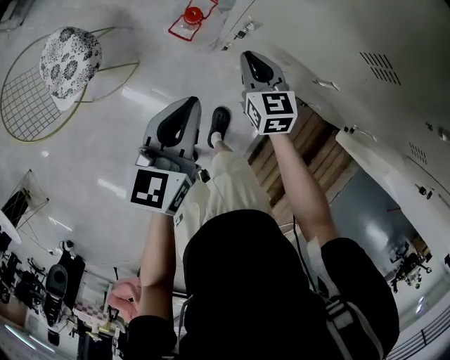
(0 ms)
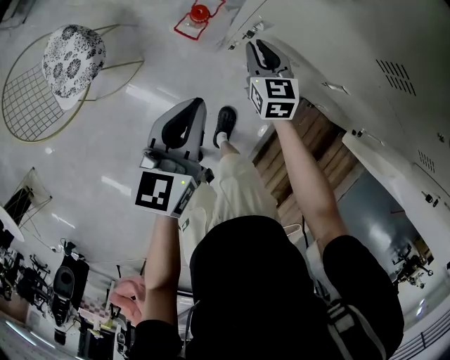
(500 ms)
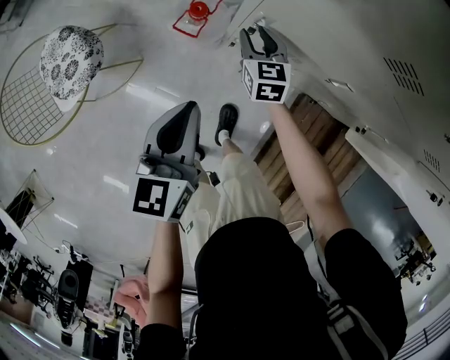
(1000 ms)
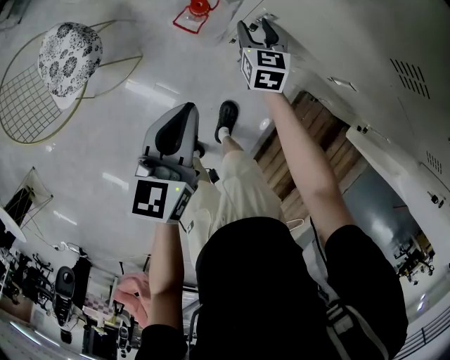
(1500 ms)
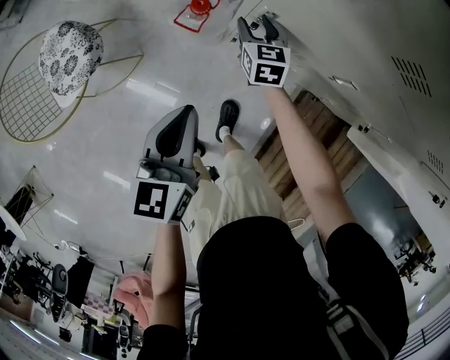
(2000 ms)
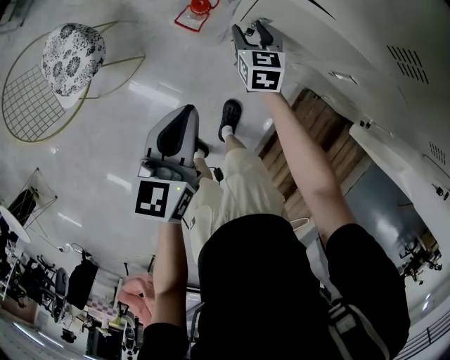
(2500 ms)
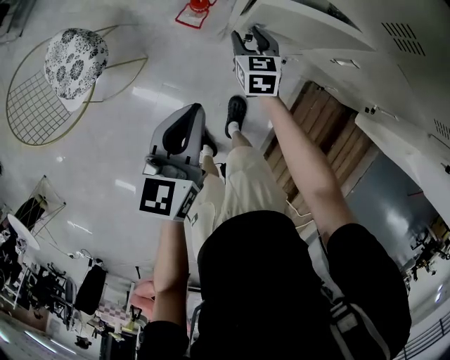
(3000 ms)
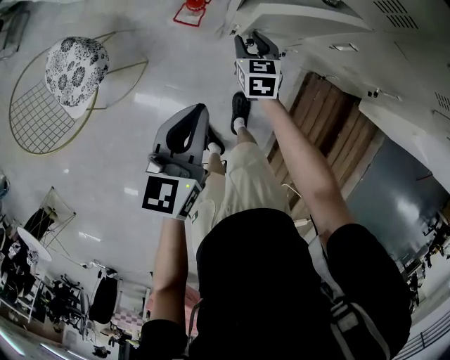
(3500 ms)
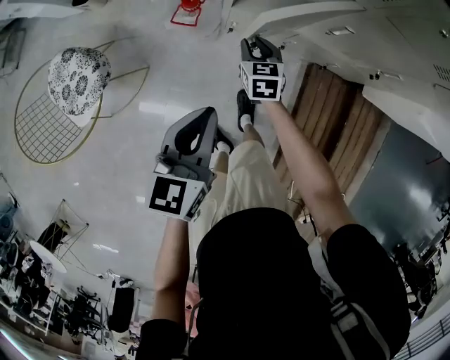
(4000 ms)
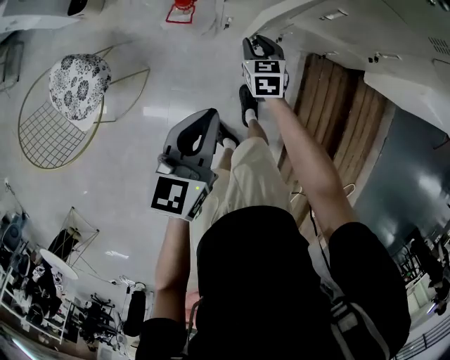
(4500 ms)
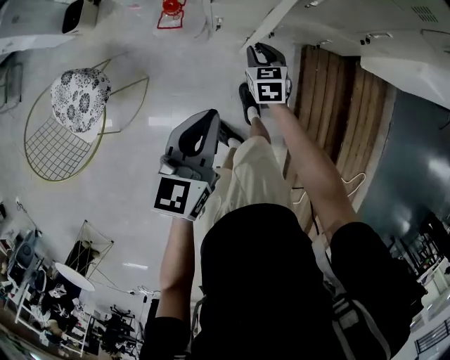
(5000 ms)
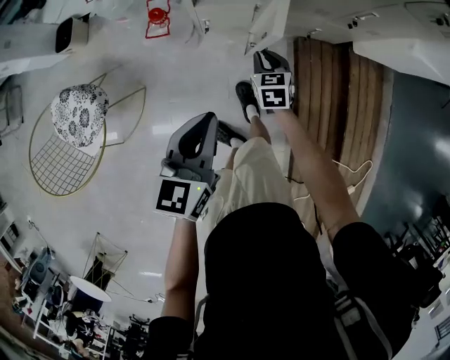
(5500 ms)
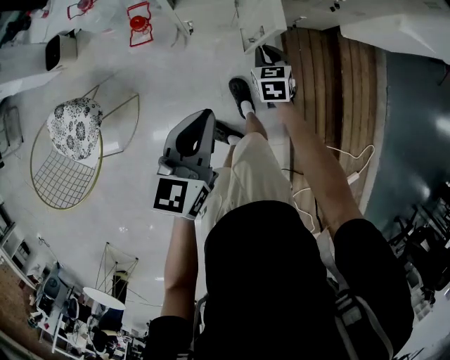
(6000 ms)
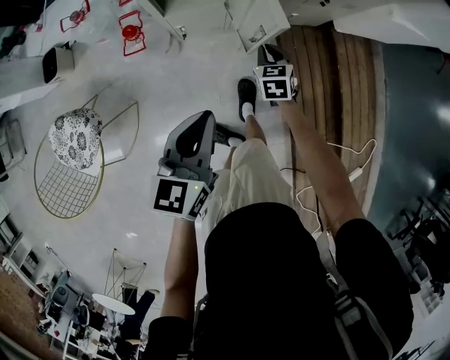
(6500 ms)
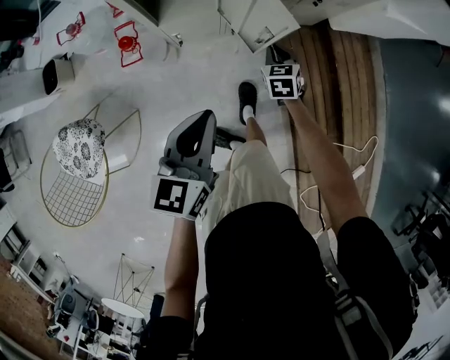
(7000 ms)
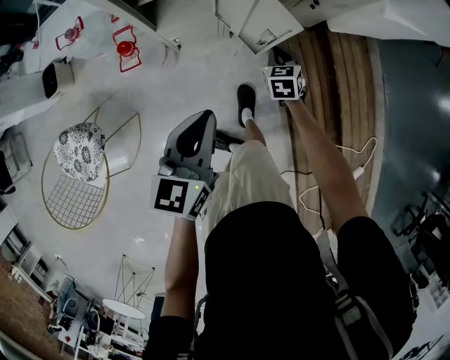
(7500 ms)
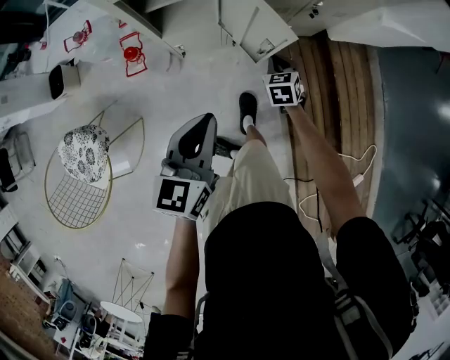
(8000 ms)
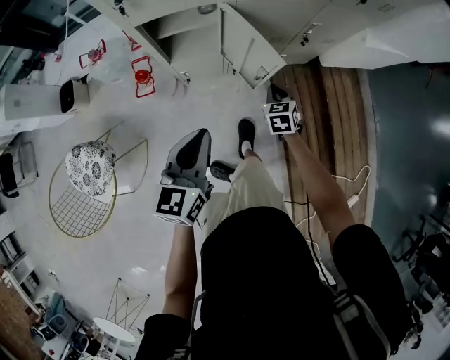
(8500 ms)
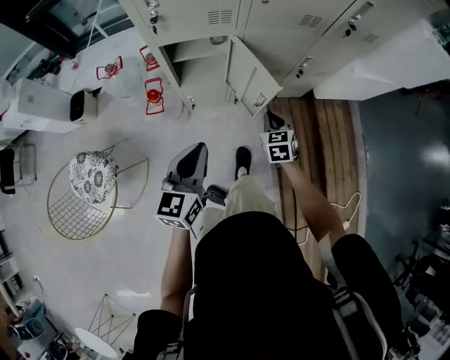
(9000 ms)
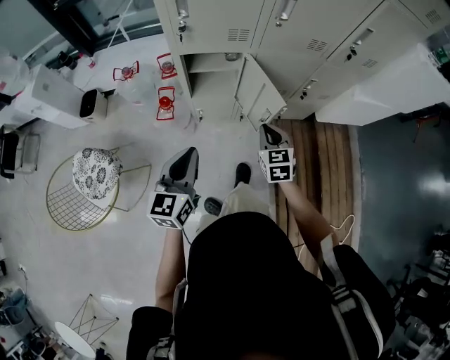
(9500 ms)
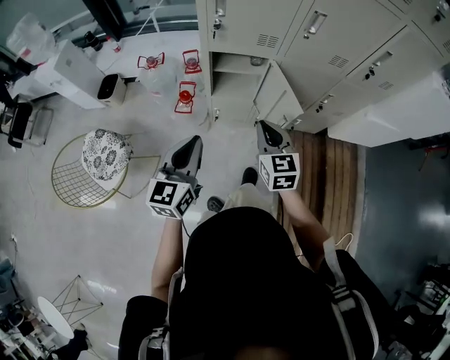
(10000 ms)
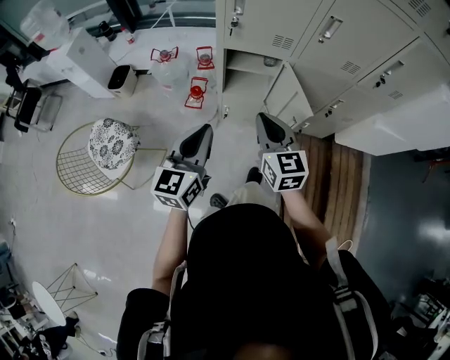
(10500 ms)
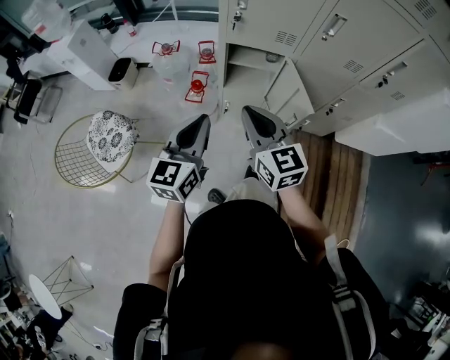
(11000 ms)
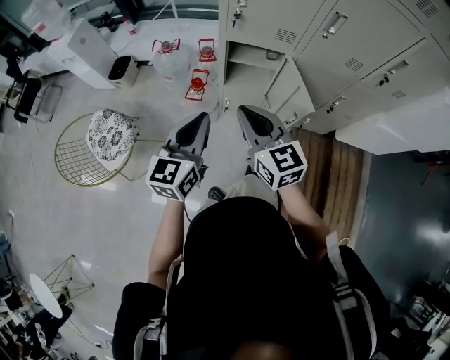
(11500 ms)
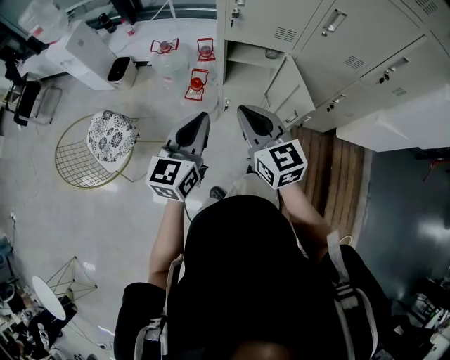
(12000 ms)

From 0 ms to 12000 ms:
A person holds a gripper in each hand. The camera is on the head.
From 0 ms to 2000 ms: The left gripper changes place by roughly 5 cm. The right gripper moves forward and downward, about 10 cm, and opens its fingers.
From 2000 ms to 4000 ms: The left gripper travels backward by approximately 10 cm, and rotates about 20 degrees. Meanwhile the right gripper heads backward, covering roughly 15 cm, and closes its fingers.
From 4000 ms to 6000 ms: The right gripper moves to the right and backward, some 20 cm, while the left gripper goes roughly 10 cm to the right and backward.
From 6000 ms to 8000 ms: The left gripper heads forward, covering roughly 5 cm, while the right gripper shifts roughly 10 cm to the right and forward.
From 8000 ms to 10000 ms: The right gripper travels upward, to the left and backward by about 40 cm, and changes its angle by some 40 degrees. Meanwhile the left gripper travels upward, to the left and backward by some 20 cm, and swivels approximately 20 degrees.
From 10000 ms to 12000 ms: The right gripper shifts roughly 10 cm to the left and upward, and turns by roughly 20 degrees.

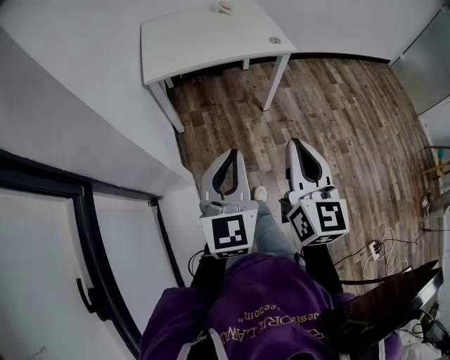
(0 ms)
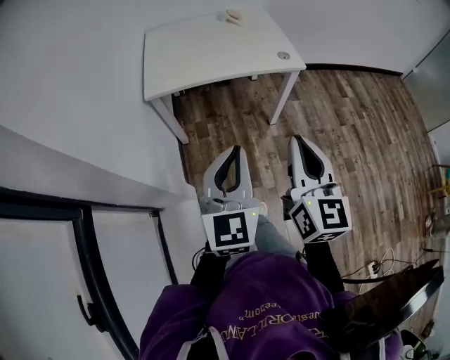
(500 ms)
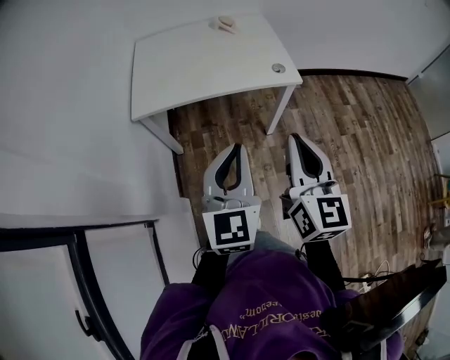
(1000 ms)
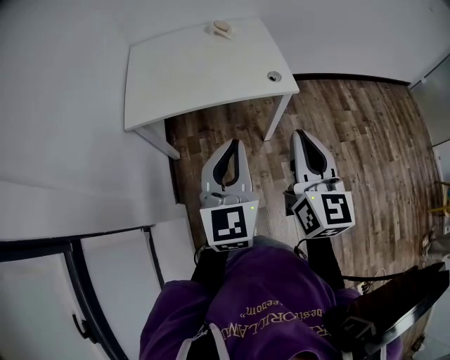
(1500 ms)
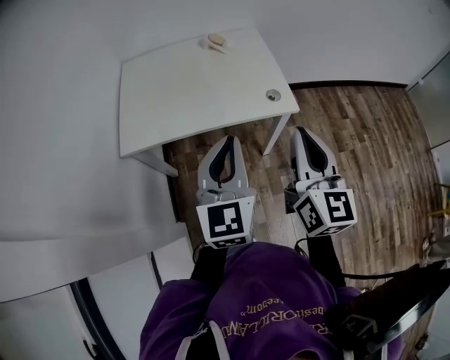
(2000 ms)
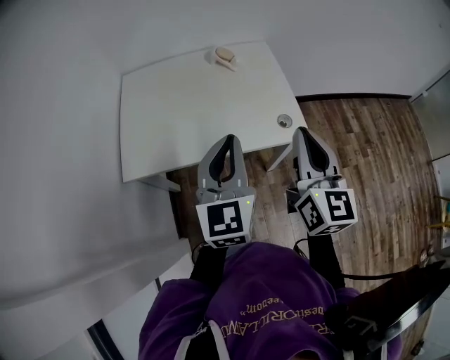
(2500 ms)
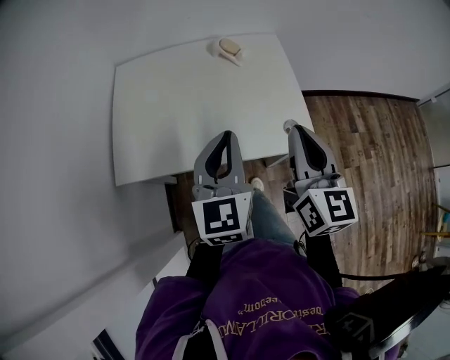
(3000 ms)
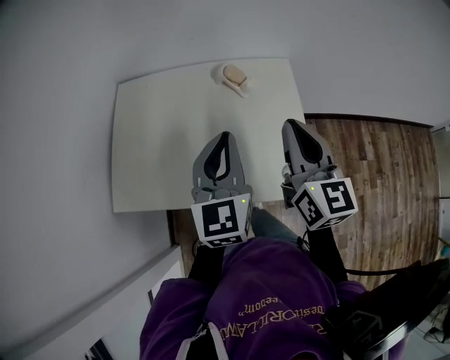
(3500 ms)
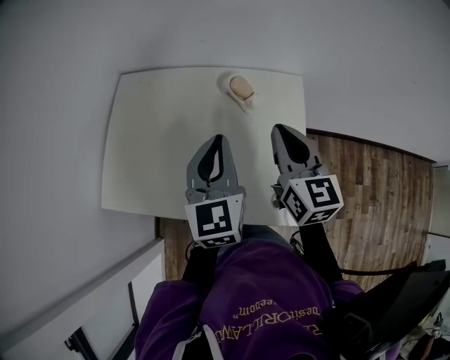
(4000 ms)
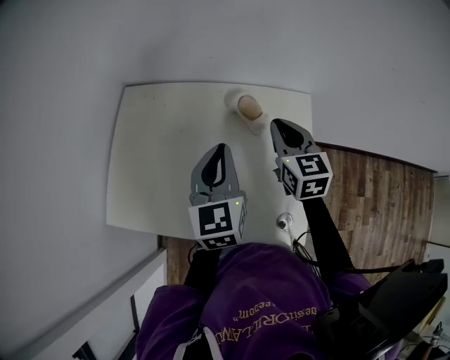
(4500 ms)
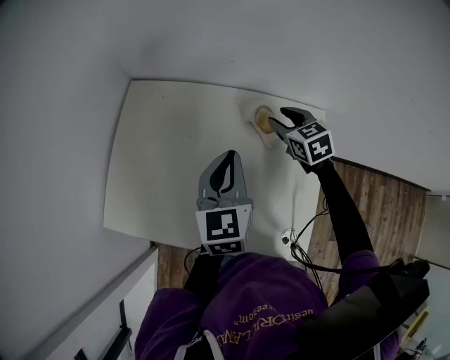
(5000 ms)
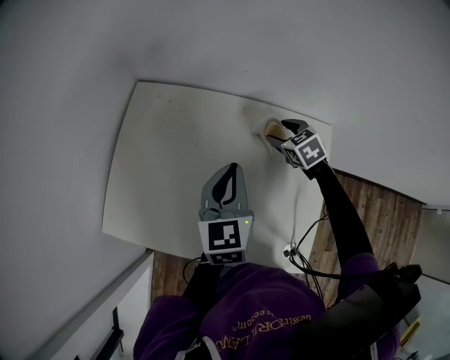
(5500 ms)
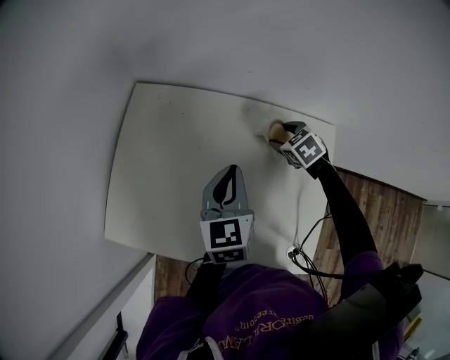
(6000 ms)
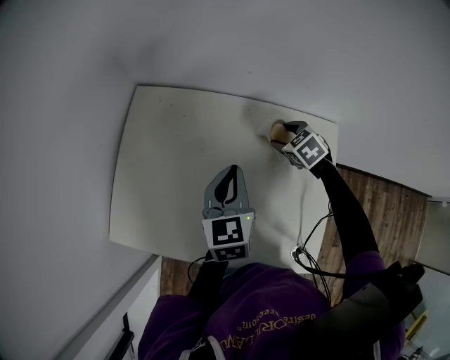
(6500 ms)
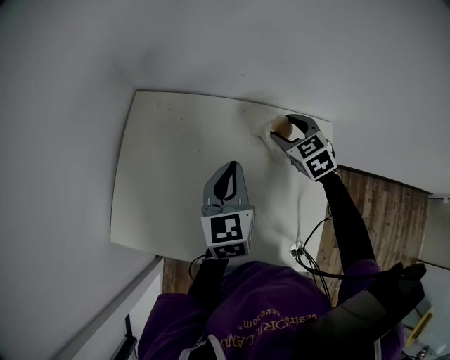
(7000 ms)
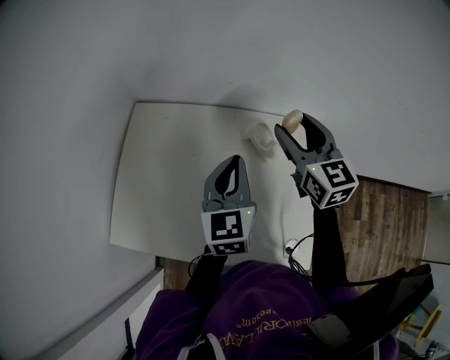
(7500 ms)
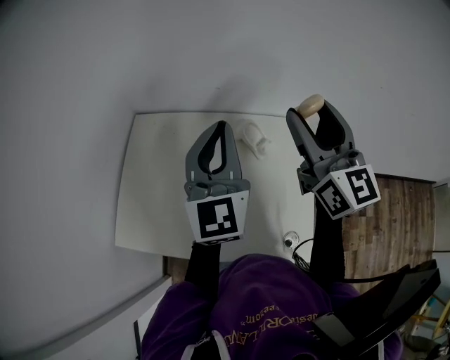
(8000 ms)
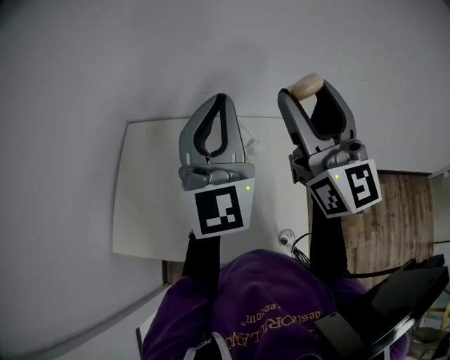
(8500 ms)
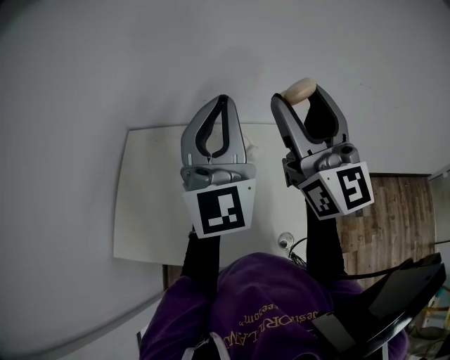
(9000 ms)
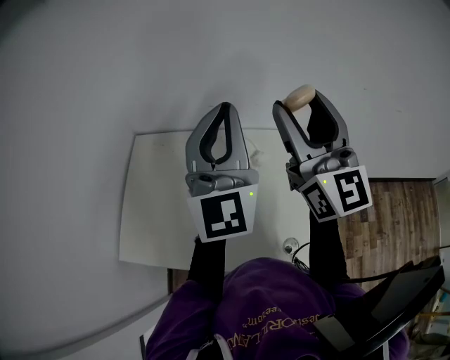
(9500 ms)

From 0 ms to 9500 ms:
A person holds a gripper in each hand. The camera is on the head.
From 0 ms to 2000 ms: Both grippers are carried forward, some 40 cm.
From 2000 ms to 4000 ms: Both grippers are carried forward, about 40 cm. The left gripper changes its angle by about 20 degrees; the right gripper swivels approximately 30 degrees.
From 4000 ms to 5500 ms: The right gripper shifts about 30 cm forward and downward, tips its fingers downward by about 40 degrees, and opens up. Meanwhile the left gripper travels forward and downward by approximately 15 cm.
From 5500 ms to 7500 ms: The left gripper ends up about 5 cm from where it was. Meanwhile the right gripper goes roughly 25 cm upward, and tips its fingers upward by approximately 40 degrees.
From 7500 ms to 9500 ms: The left gripper goes some 20 cm upward, and tips its fingers upward by about 30 degrees; the right gripper travels upward and backward by approximately 20 cm, and tips its fingers upward by about 30 degrees.

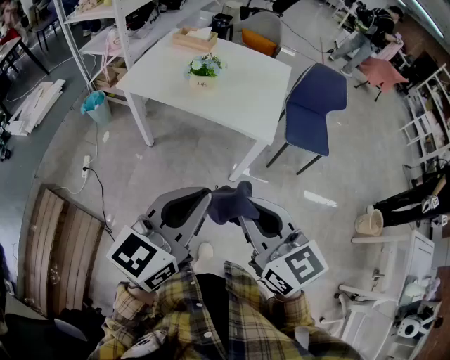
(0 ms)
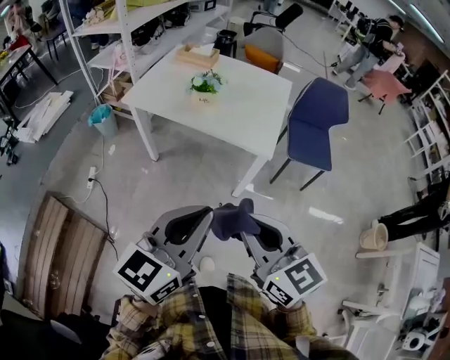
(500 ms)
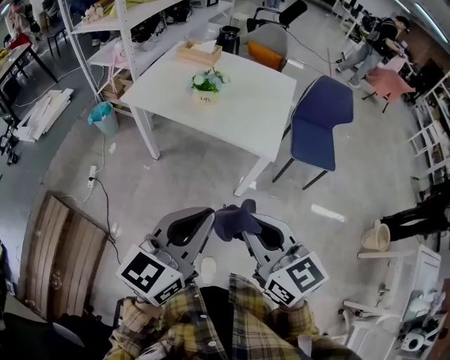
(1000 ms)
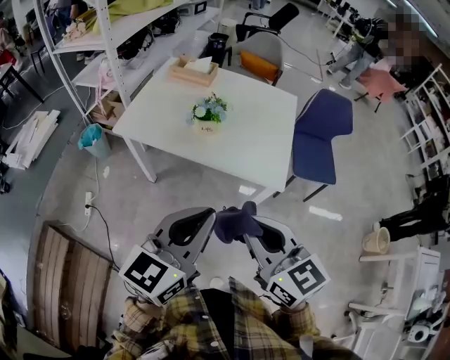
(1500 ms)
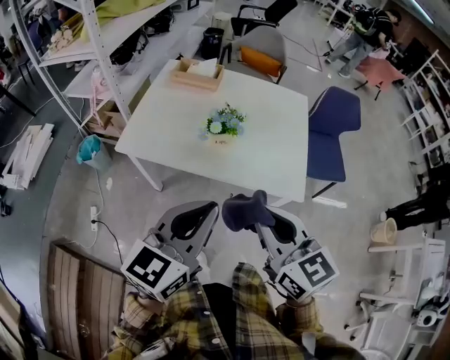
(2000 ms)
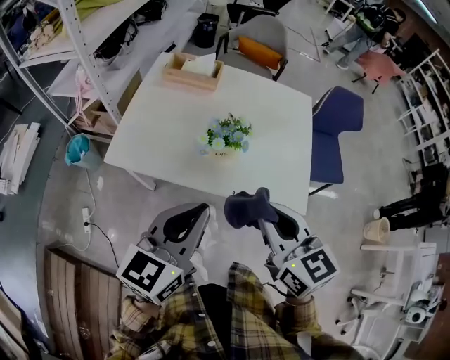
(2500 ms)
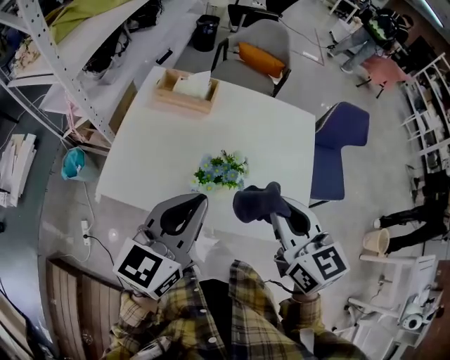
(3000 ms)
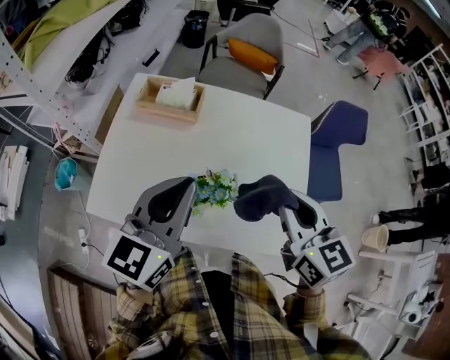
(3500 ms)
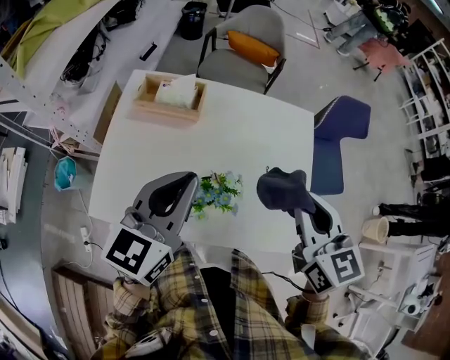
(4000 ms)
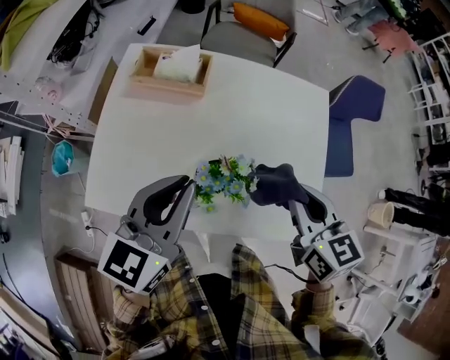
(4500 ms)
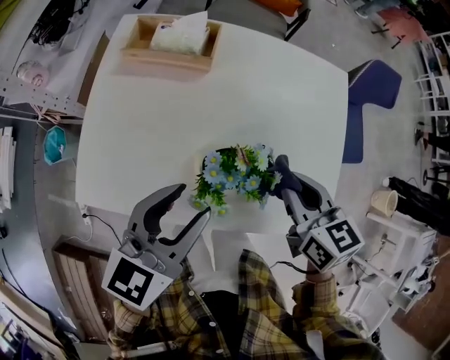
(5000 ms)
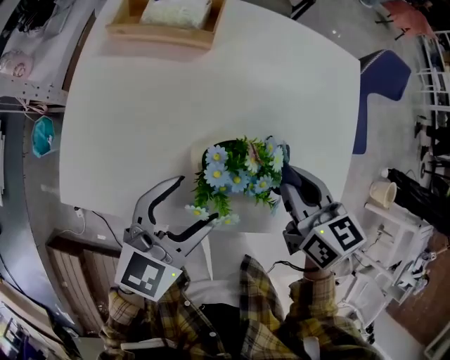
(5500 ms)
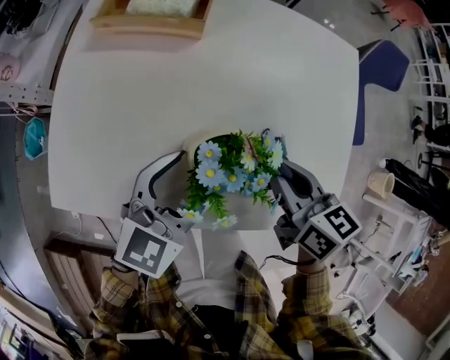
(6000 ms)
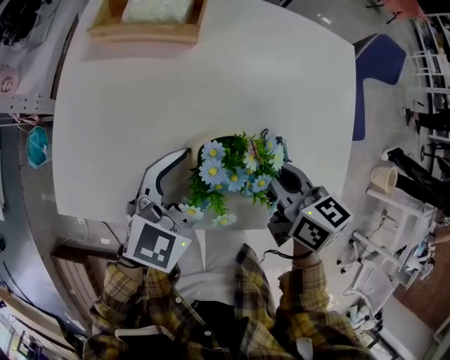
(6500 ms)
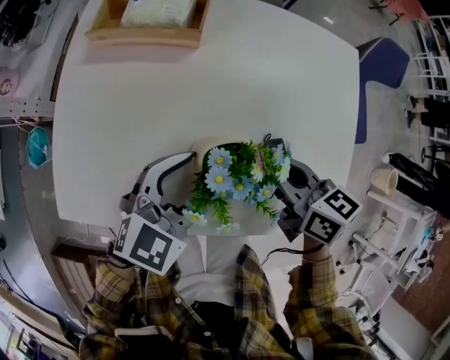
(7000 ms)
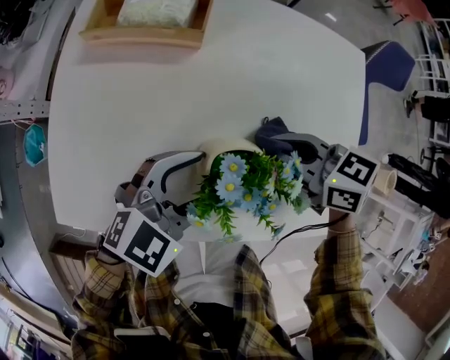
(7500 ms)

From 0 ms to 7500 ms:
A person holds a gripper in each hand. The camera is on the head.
From 0 ms to 2000 ms: The left gripper shifts about 25 cm forward and to the left; the right gripper goes roughly 25 cm forward.
From 2000 ms to 4000 ms: The two grippers go some 35 cm forward.
From 4000 ms to 5500 ms: The two grippers go roughly 20 cm downward. The right gripper swivels about 20 degrees. The left gripper changes its angle by roughly 20 degrees, and opens its fingers.
From 5500 ms to 7500 ms: The right gripper shifts by approximately 10 cm, and turns by approximately 30 degrees; the left gripper ends up roughly 5 cm from where it was, and turns by approximately 20 degrees.
